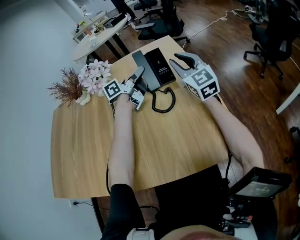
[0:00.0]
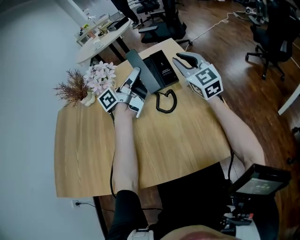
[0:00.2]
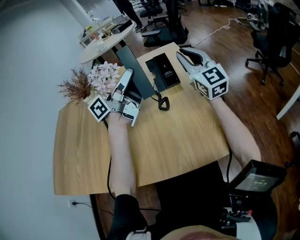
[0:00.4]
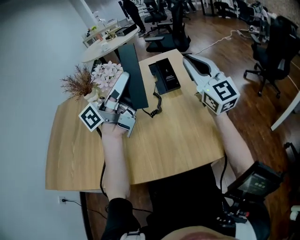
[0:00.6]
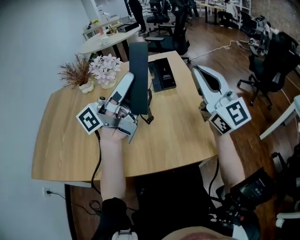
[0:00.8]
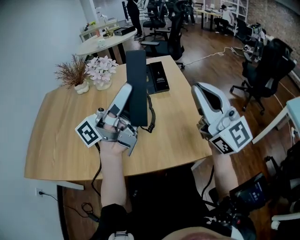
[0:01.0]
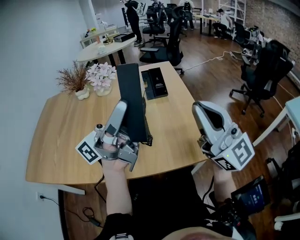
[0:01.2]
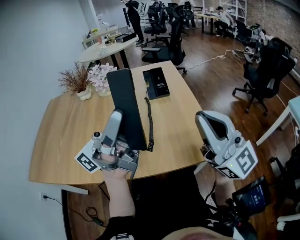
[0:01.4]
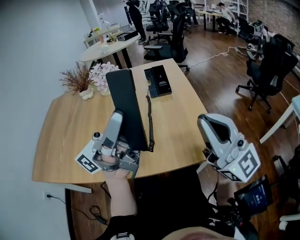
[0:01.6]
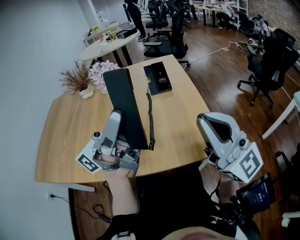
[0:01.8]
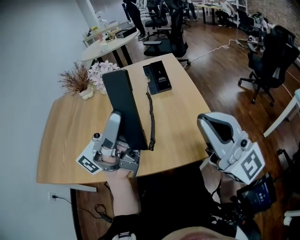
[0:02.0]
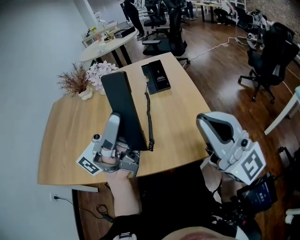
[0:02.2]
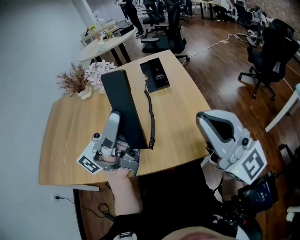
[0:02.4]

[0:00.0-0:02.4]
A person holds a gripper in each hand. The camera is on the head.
0:00.0 to 0:01.2: Both grippers travel together backward and upward, approximately 40 cm. The left gripper points its fingers about 40 degrees further upward. Meanwhile the right gripper swivels about 30 degrees, and closes up.
0:01.2 to 0:02.4: The grippers make only small movements.

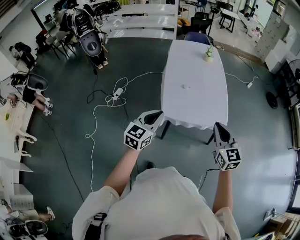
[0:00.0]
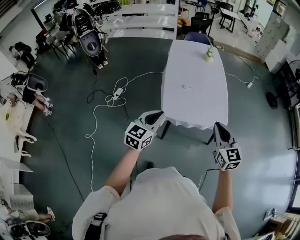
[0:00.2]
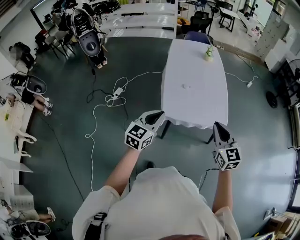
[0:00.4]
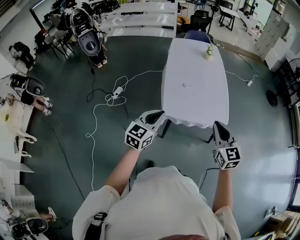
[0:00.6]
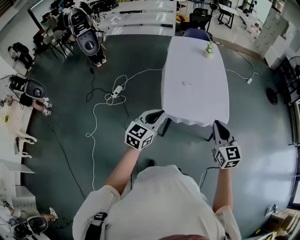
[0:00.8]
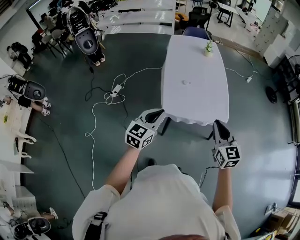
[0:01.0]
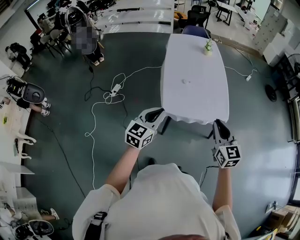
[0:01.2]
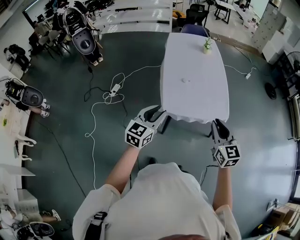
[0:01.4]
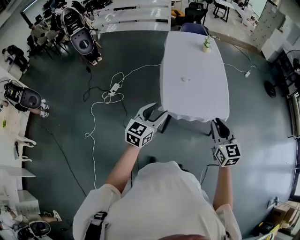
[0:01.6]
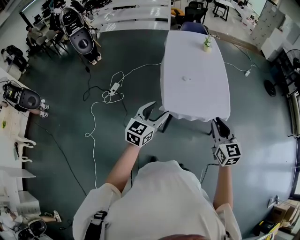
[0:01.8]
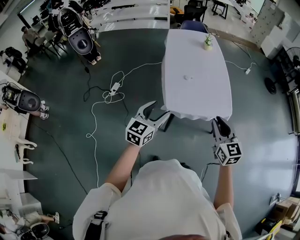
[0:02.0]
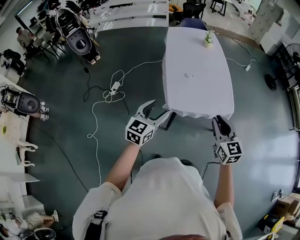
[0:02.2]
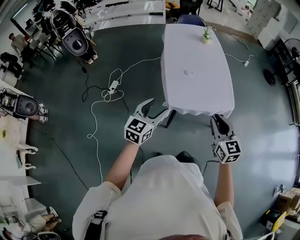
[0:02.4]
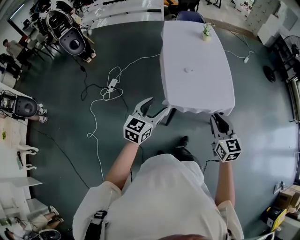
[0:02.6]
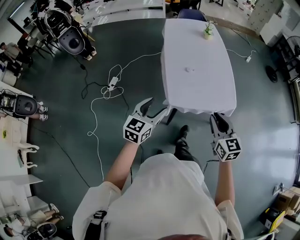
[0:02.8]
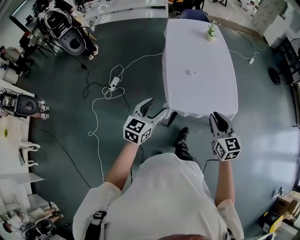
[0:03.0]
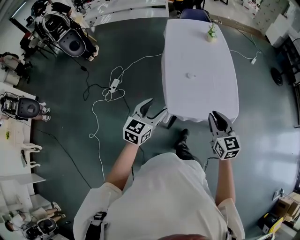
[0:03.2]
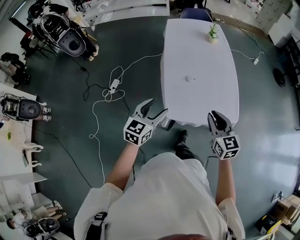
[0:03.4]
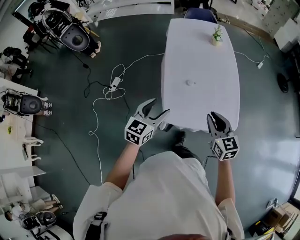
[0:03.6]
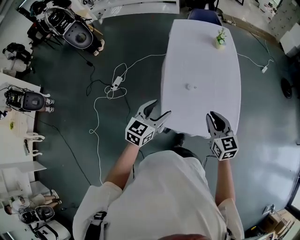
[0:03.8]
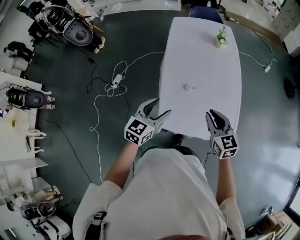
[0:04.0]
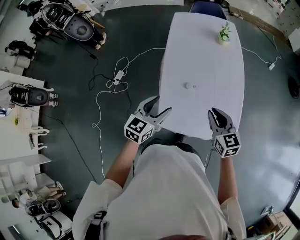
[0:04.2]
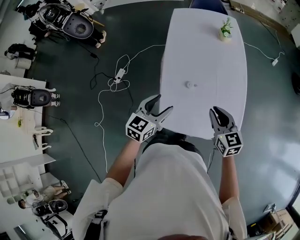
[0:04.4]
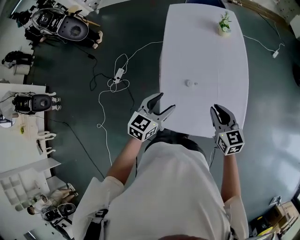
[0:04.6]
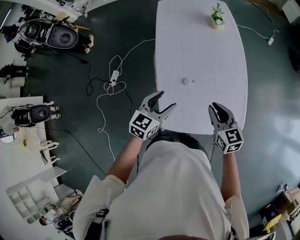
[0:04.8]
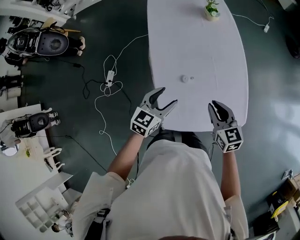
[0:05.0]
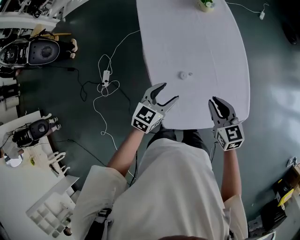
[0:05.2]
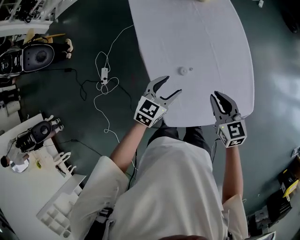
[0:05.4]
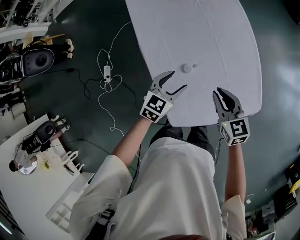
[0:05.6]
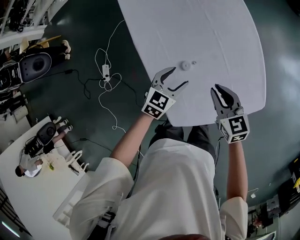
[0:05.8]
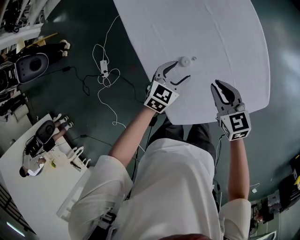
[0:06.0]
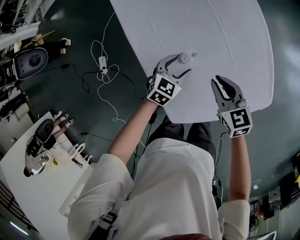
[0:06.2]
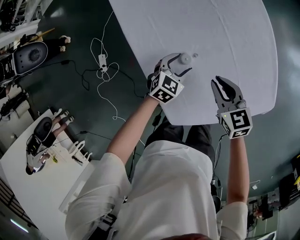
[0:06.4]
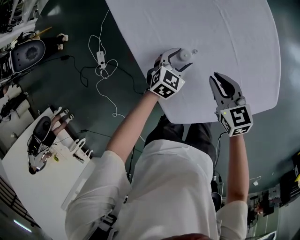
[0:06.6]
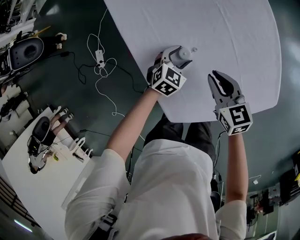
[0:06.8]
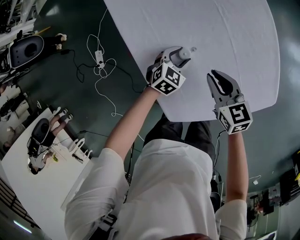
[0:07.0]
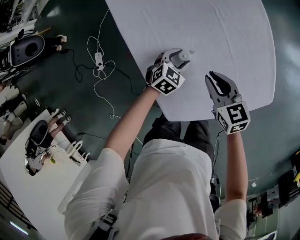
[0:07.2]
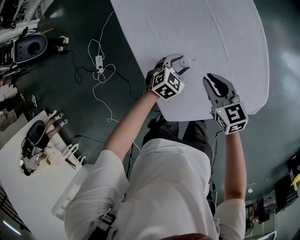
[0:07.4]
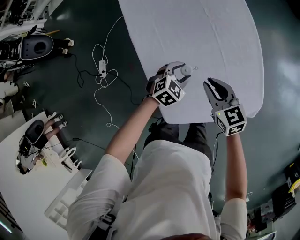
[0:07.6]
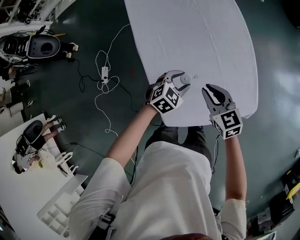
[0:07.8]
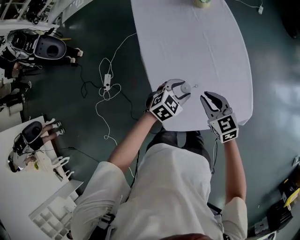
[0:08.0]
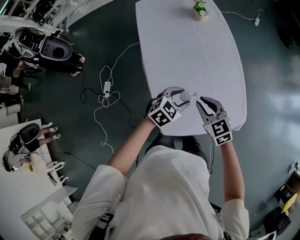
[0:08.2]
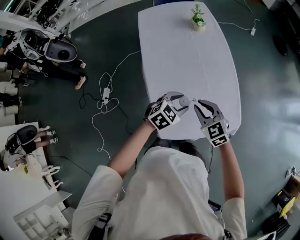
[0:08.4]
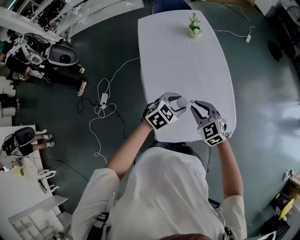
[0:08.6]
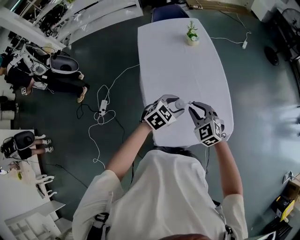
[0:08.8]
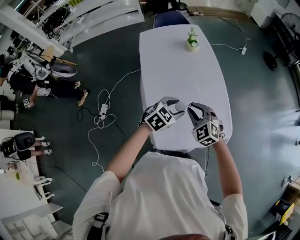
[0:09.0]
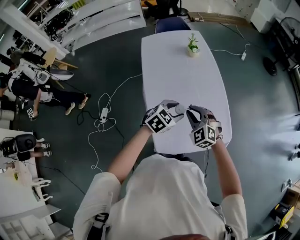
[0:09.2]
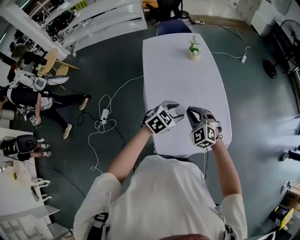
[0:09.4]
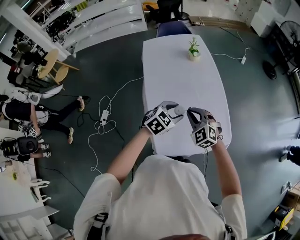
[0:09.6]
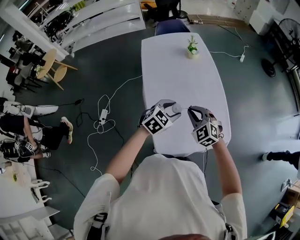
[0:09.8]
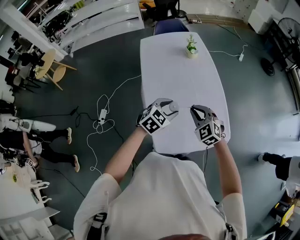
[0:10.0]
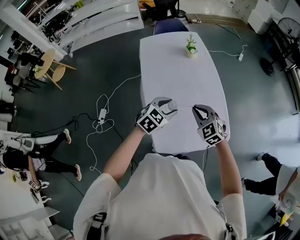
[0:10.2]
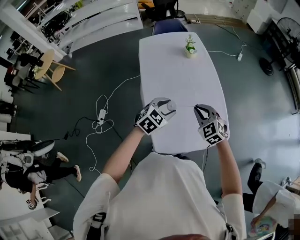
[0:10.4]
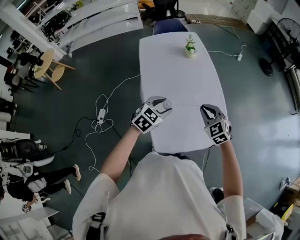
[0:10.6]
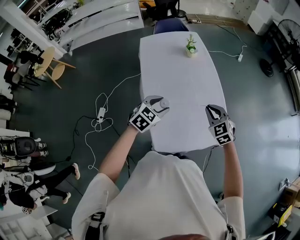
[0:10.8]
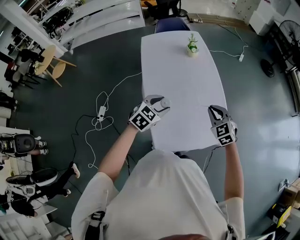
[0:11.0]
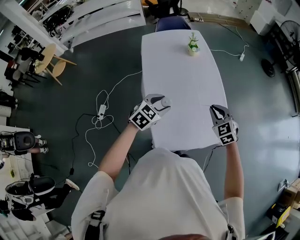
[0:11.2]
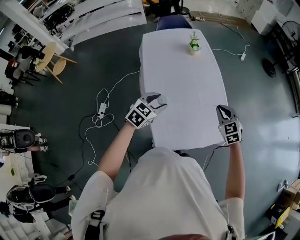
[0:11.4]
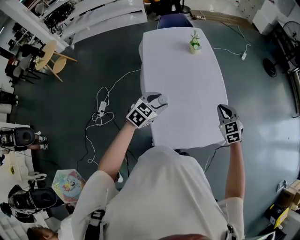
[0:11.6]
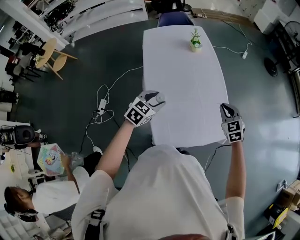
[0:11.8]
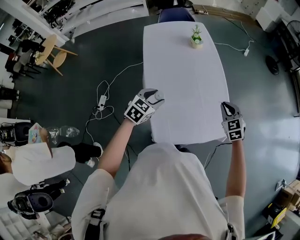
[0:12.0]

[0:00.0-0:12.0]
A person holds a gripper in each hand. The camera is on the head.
0:00.0 to 0:01.6: The left gripper opens its fingers.
0:01.6 to 0:03.0: The grippers both shift forward and to the left by approximately 10 cm.
0:03.0 to 0:04.4: The right gripper is displaced forward by approximately 30 cm; the left gripper heads forward and to the right, covering some 25 cm.
0:04.4 to 0:06.0: The left gripper moves downward and forward, approximately 40 cm, and changes its angle by roughly 40 degrees, while the right gripper is displaced downward by about 30 cm, and swivels roughly 20 degrees.
0:06.0 to 0:07.6: The right gripper travels downward and back again, some 10 cm each way, while the left gripper moves about 15 cm downward and comes back.
0:07.6 to 0:09.0: The right gripper is displaced upward by approximately 20 cm, and rolls counterclockwise, seen from behind, by approximately 50 degrees. Meanwhile the left gripper goes some 30 cm upward.
0:09.0 to 0:10.4: The grippers stay close to where they were, moving slightly.
0:10.4 to 0:12.0: The right gripper shifts approximately 15 cm to the right. Meanwhile the left gripper is displaced to the left by some 5 cm.

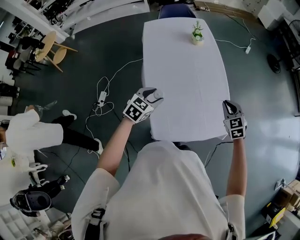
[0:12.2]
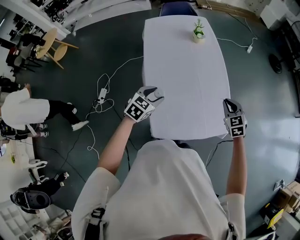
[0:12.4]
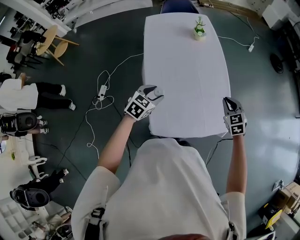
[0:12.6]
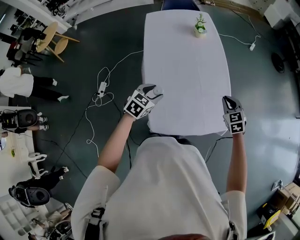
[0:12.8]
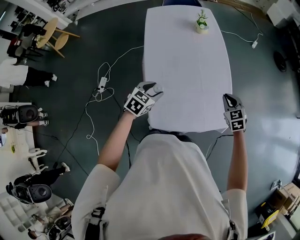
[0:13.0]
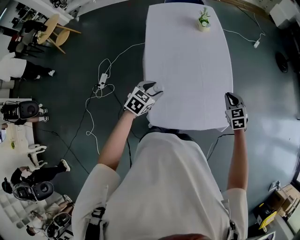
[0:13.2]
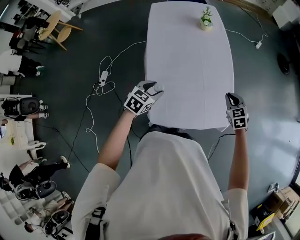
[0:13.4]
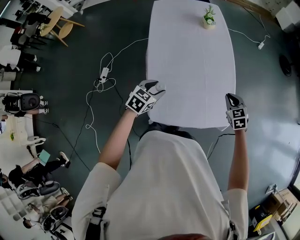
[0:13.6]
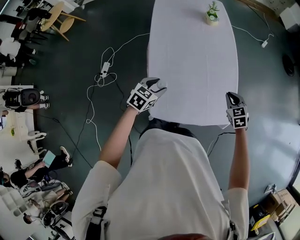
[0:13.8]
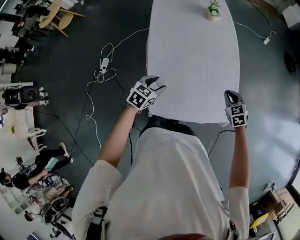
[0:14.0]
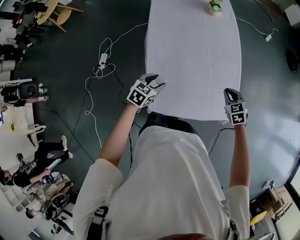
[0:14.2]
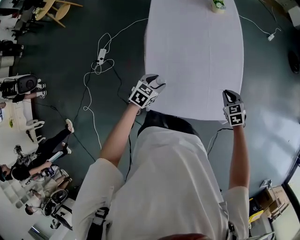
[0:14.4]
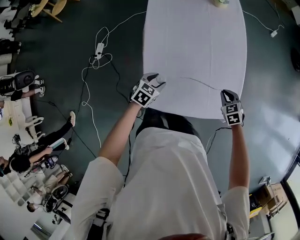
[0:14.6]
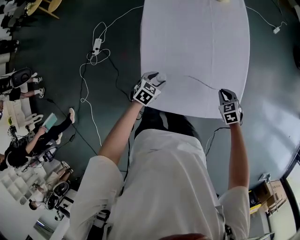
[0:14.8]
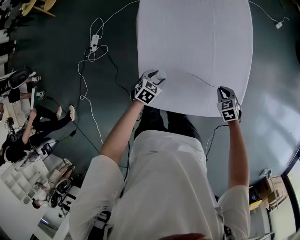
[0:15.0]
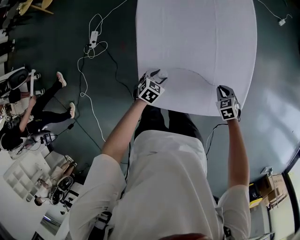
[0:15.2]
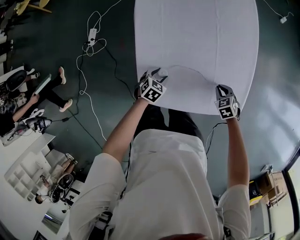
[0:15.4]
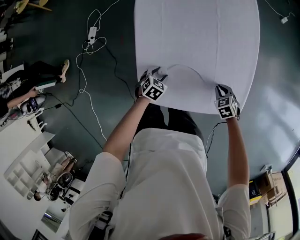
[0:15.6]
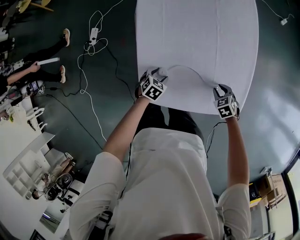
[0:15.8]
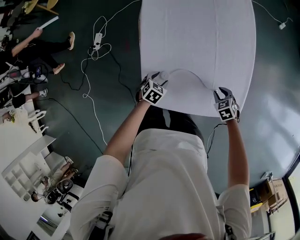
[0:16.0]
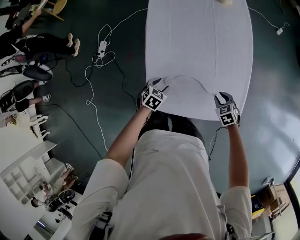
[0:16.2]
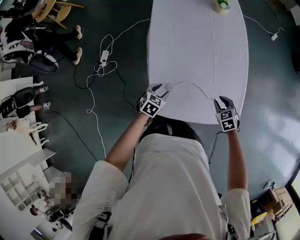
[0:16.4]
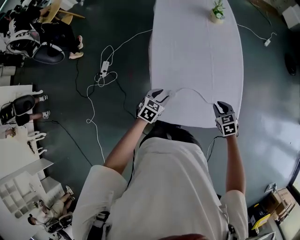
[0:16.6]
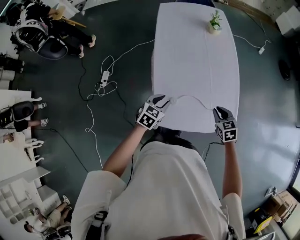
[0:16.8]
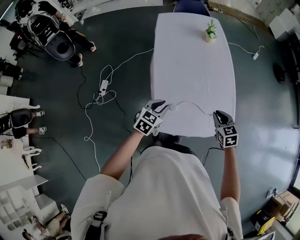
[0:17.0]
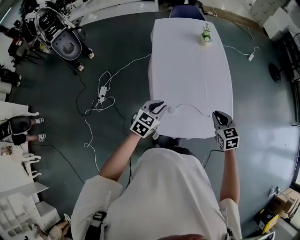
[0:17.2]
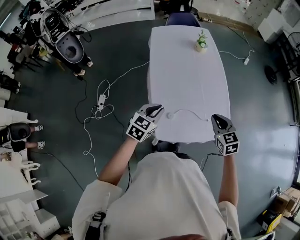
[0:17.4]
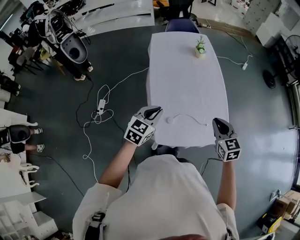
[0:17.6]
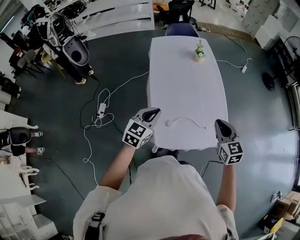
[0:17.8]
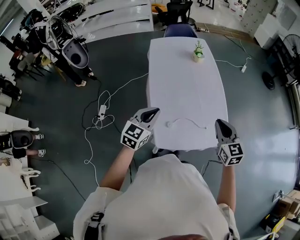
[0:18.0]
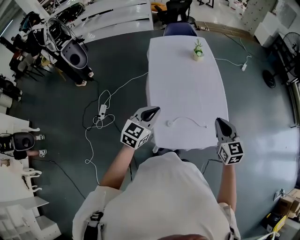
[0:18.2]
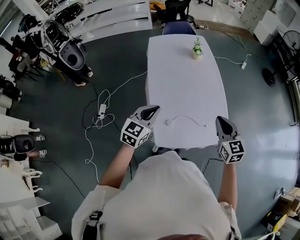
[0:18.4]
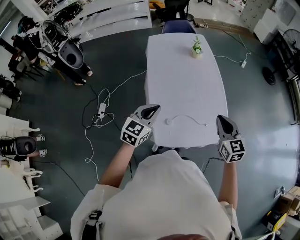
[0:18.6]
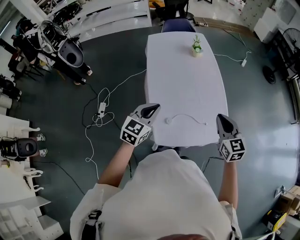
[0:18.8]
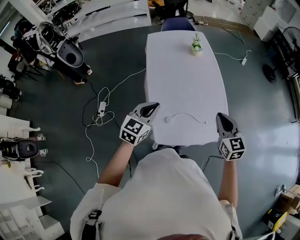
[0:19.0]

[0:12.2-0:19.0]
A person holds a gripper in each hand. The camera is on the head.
0:12.2 to 0:13.6: Both grippers move downward, about 5 cm.
0:13.6 to 0:15.0: Both grippers travel together downward, approximately 20 cm. The right gripper rotates approximately 20 degrees.
0:15.0 to 0:16.2: The right gripper opens.
0:16.2 to 0:17.6: Both grippers move upward, roughly 35 cm. The right gripper tilts its fingers approximately 40 degrees upward, and closes; the left gripper tilts its fingers some 30 degrees upward, and closes up.
0:17.6 to 0:19.0: There are only small adjustments of the grippers.

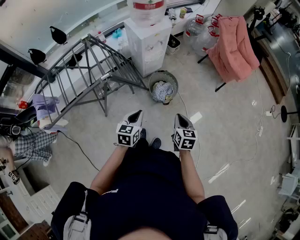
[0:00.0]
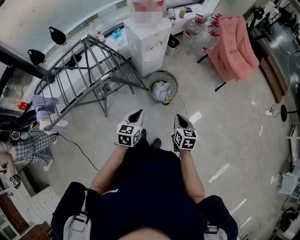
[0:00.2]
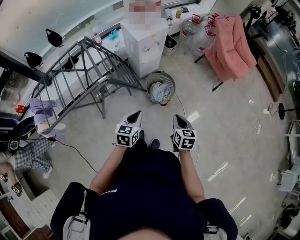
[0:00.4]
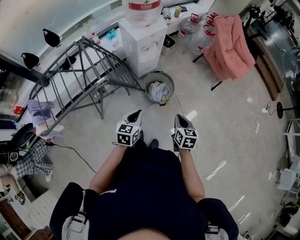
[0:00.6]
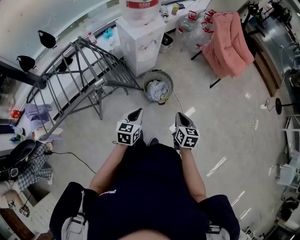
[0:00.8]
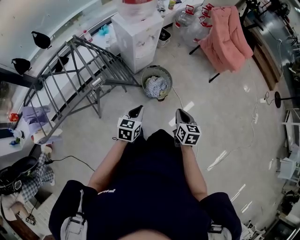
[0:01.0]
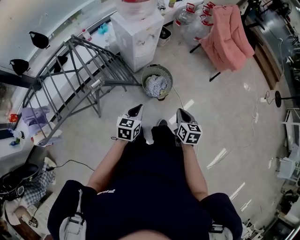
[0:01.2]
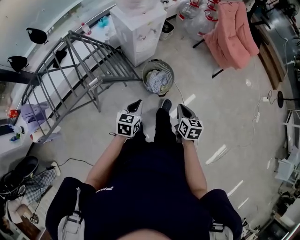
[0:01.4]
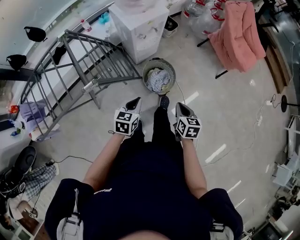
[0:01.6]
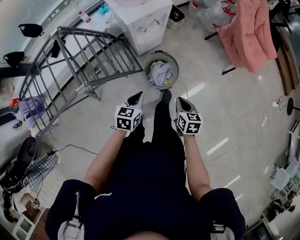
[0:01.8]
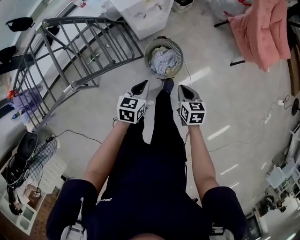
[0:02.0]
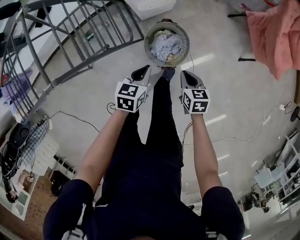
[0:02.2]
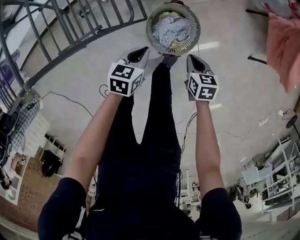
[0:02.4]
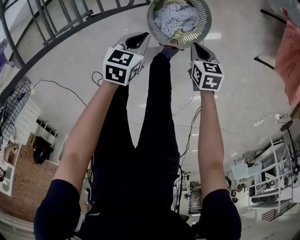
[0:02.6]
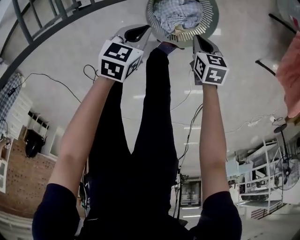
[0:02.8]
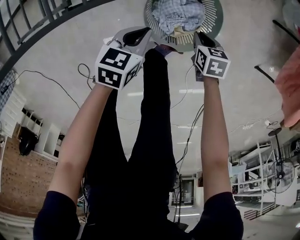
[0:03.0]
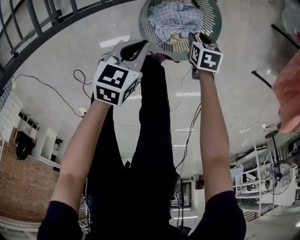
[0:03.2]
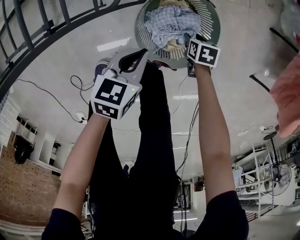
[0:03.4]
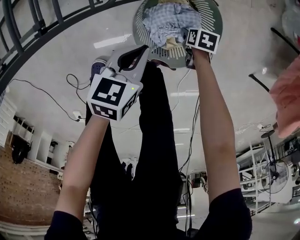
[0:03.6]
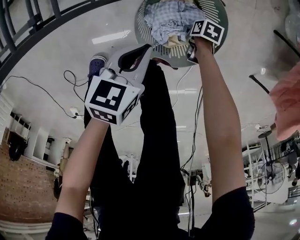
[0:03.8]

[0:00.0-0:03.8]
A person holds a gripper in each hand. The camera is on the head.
0:00.0 to 0:01.2: Both grippers move forward, some 5 cm.
0:01.2 to 0:02.6: The grippers both shift downward by roughly 40 cm. The right gripper swivels some 40 degrees. The left gripper changes its angle by some 30 degrees.
0:02.6 to 0:03.8: The left gripper heads downward, covering approximately 10 cm. Meanwhile the right gripper moves downward, some 30 cm, swivels roughly 30 degrees, and opens up.
